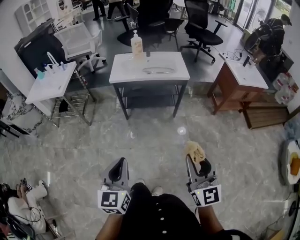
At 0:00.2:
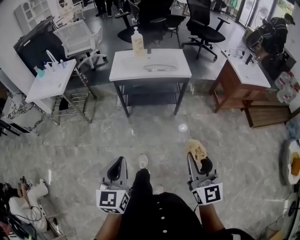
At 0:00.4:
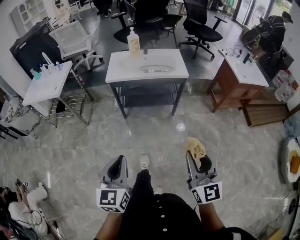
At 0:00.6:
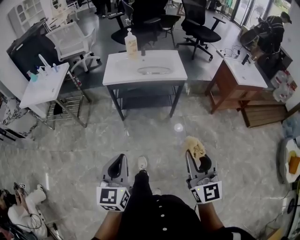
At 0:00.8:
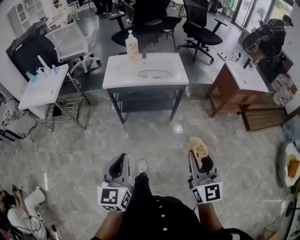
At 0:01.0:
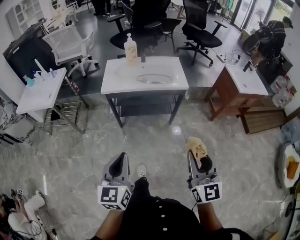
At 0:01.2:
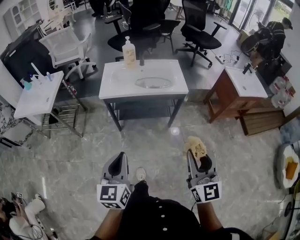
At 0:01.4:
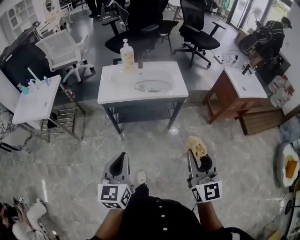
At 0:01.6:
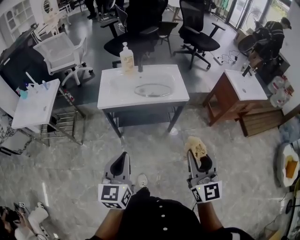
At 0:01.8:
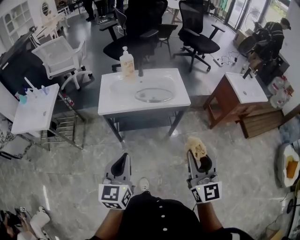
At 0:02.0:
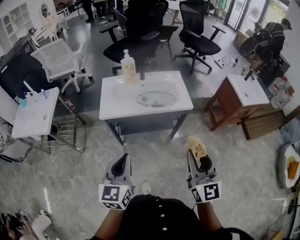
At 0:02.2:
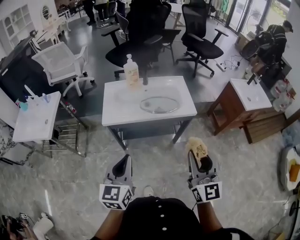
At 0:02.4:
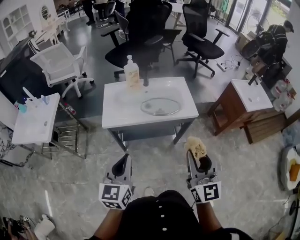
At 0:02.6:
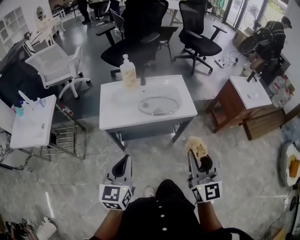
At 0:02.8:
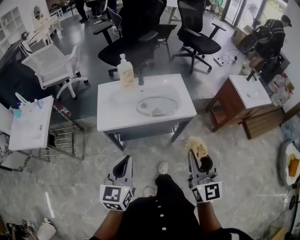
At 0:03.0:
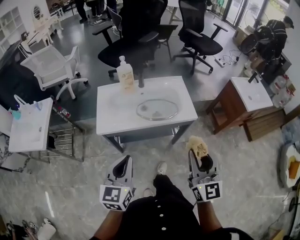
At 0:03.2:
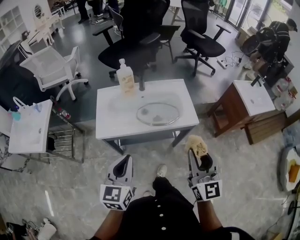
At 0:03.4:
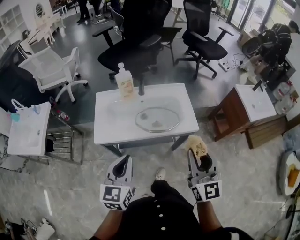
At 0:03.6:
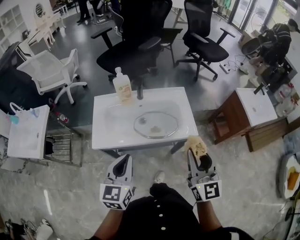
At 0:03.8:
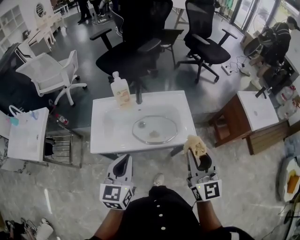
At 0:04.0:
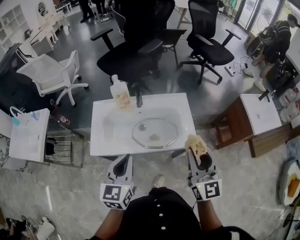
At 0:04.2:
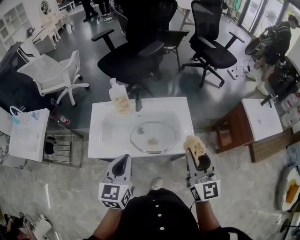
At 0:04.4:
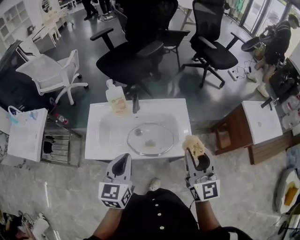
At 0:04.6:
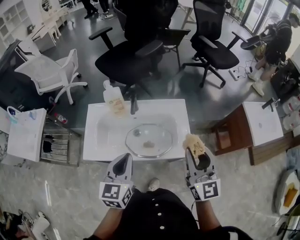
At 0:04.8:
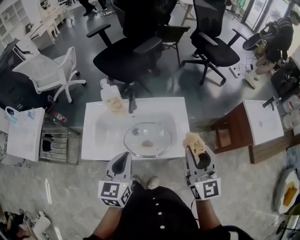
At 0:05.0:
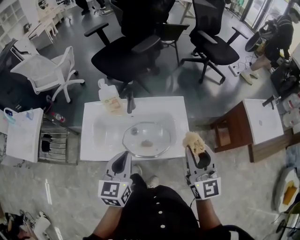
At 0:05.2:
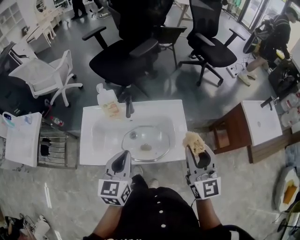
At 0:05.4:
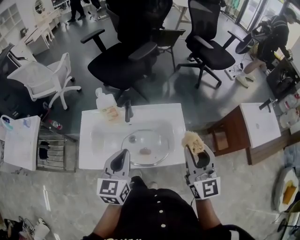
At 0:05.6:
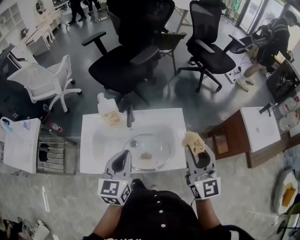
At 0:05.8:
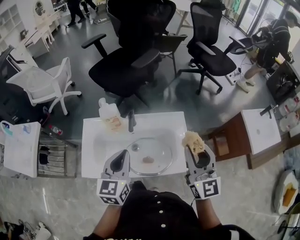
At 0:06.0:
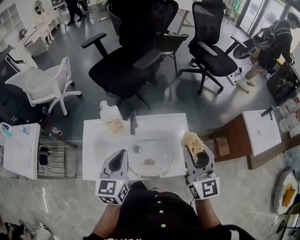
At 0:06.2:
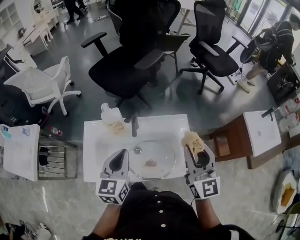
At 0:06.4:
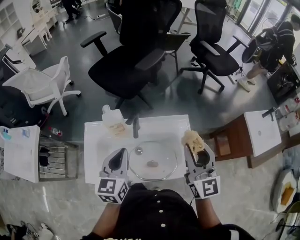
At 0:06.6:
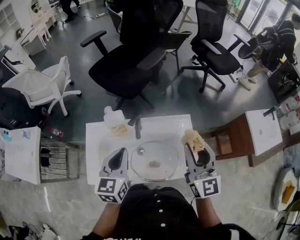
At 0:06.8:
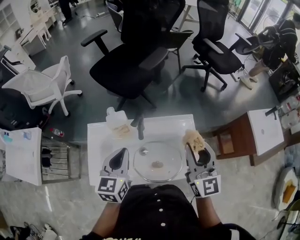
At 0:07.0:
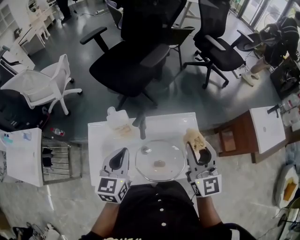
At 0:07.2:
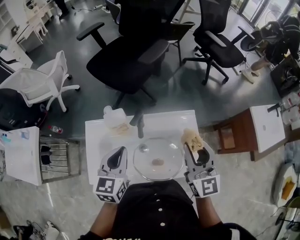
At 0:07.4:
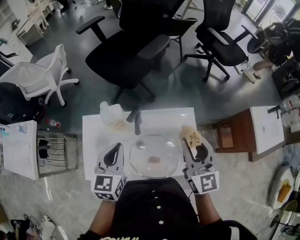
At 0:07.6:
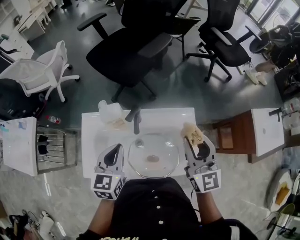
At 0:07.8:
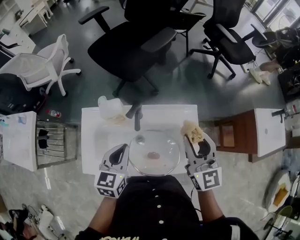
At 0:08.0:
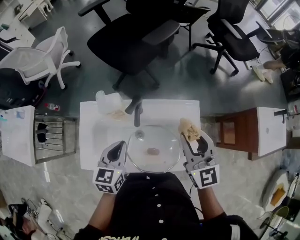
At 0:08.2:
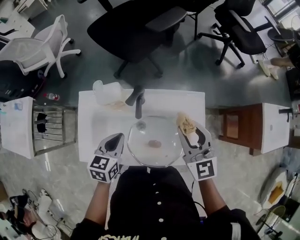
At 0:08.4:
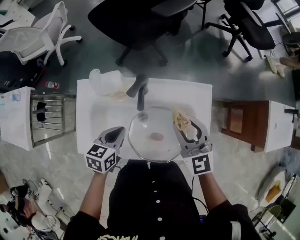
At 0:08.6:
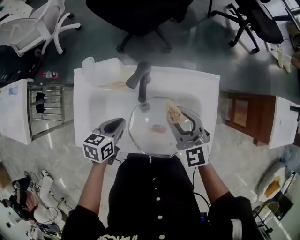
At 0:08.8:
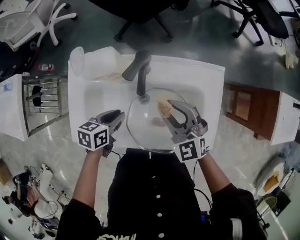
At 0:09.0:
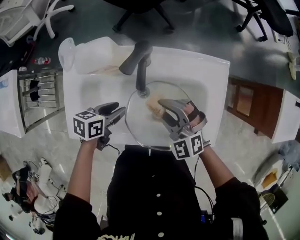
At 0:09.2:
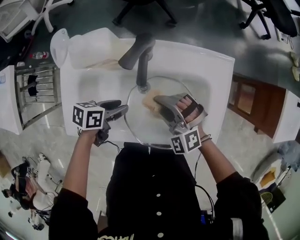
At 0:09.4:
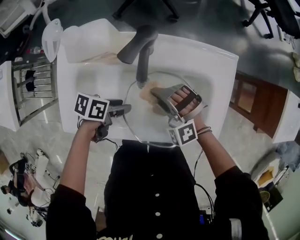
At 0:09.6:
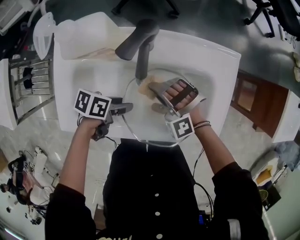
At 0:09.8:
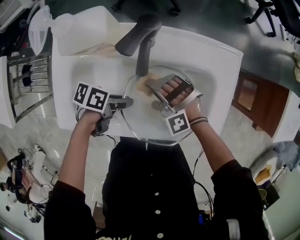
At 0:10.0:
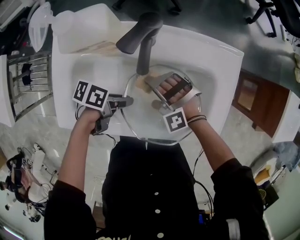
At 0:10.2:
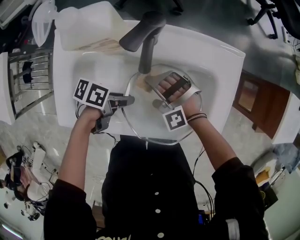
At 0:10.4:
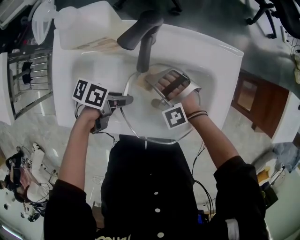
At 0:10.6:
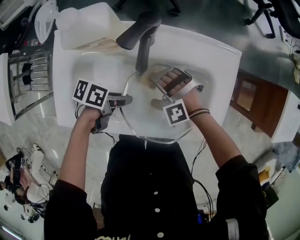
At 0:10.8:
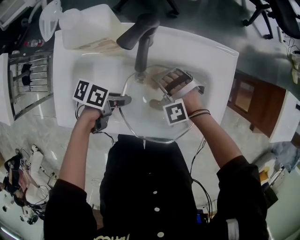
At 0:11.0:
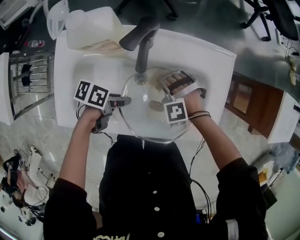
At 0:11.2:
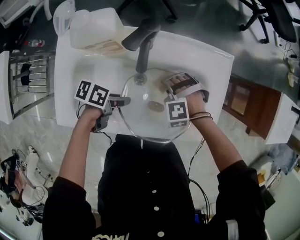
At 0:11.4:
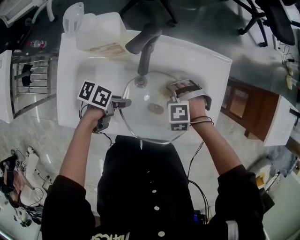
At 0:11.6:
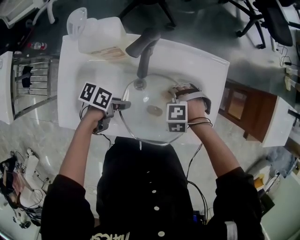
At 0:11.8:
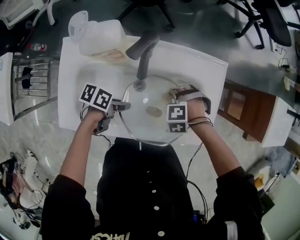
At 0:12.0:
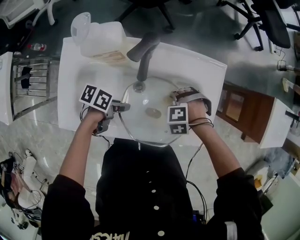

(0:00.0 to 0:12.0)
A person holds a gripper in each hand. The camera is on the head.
0:00.0 - 0:01.6: The grippers both shift forward by some 25 cm.
0:01.6 - 0:03.0: Both grippers travel together forward, about 20 cm.
0:03.0 - 0:04.4: Both grippers travel together forward, approximately 25 cm.
0:04.4 - 0:06.0: The grippers both shift forward by roughly 15 cm.
0:06.0 - 0:07.6: The two grippers go about 10 cm forward.
0:07.6 - 0:09.0: The right gripper heads downward and to the left, covering roughly 30 cm, and angles its fingers downward, by about 30 degrees. Meanwhile the left gripper heads downward, covering some 25 cm, changes its angle by approximately 50 degrees, and opens.
0:09.0 - 0:10.4: The left gripper shifts by some 5 cm, and turns by some 30 degrees; the right gripper travels downward by roughly 15 cm, and rotates around the line of its fingers by approximately 40 degrees, counterclockwise from behind.
0:10.4 - 0:12.0: The right gripper ends up roughly 15 cm from where it was, and angles its fingers downward, by approximately 40 degrees.

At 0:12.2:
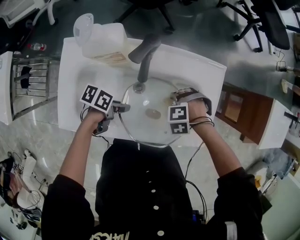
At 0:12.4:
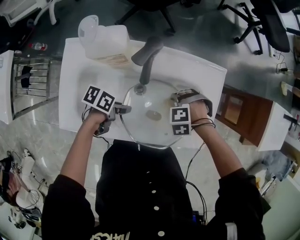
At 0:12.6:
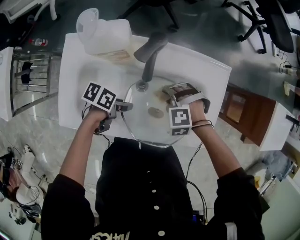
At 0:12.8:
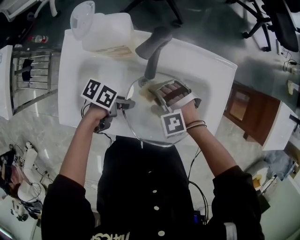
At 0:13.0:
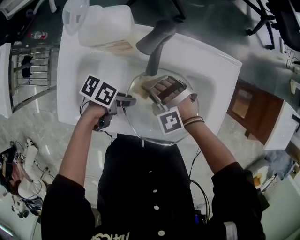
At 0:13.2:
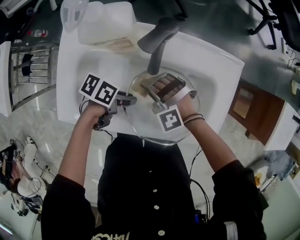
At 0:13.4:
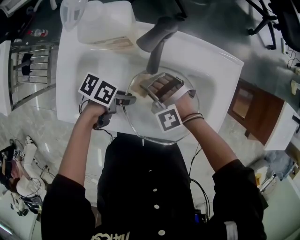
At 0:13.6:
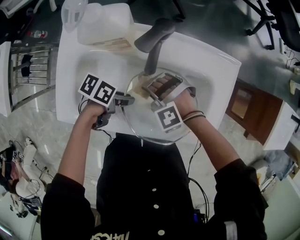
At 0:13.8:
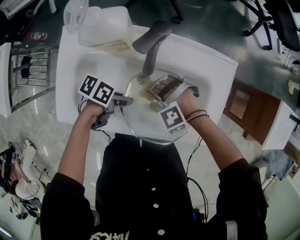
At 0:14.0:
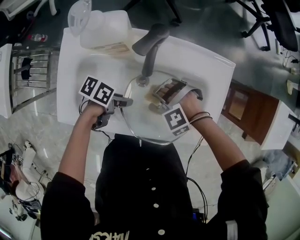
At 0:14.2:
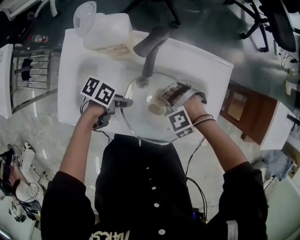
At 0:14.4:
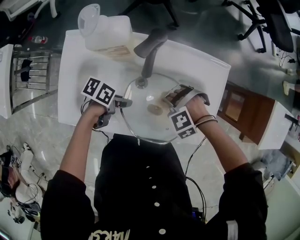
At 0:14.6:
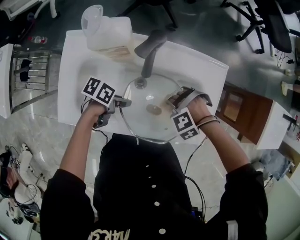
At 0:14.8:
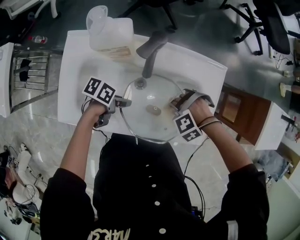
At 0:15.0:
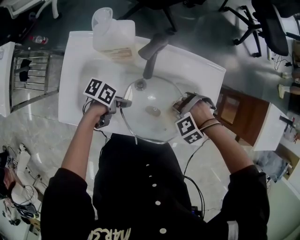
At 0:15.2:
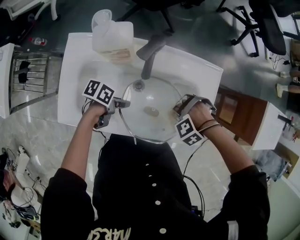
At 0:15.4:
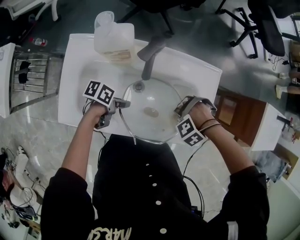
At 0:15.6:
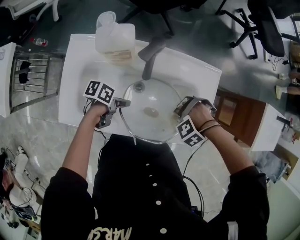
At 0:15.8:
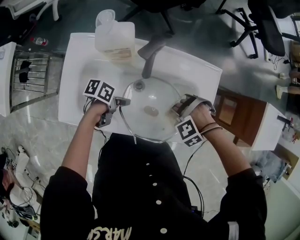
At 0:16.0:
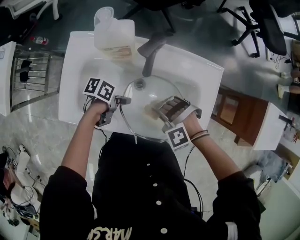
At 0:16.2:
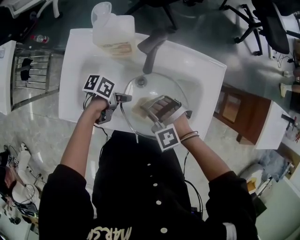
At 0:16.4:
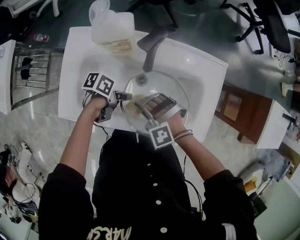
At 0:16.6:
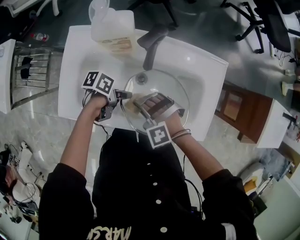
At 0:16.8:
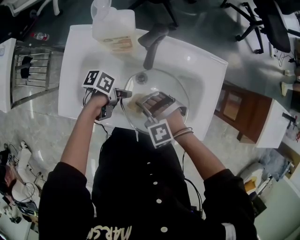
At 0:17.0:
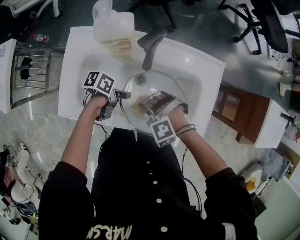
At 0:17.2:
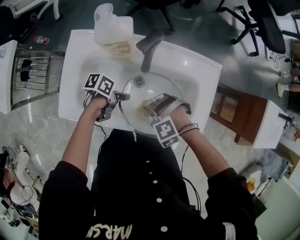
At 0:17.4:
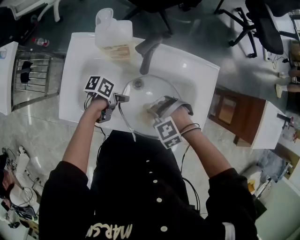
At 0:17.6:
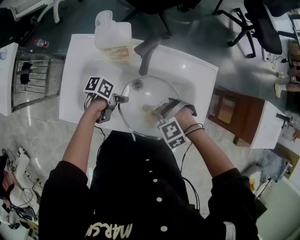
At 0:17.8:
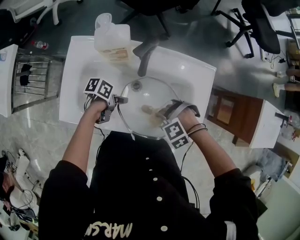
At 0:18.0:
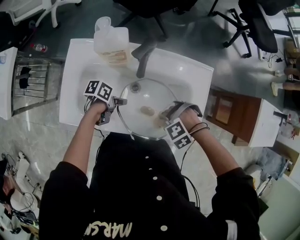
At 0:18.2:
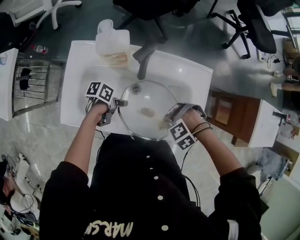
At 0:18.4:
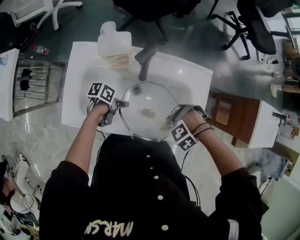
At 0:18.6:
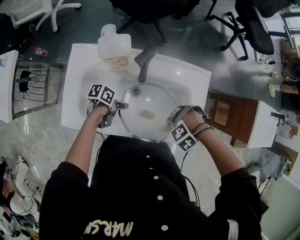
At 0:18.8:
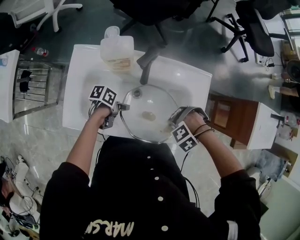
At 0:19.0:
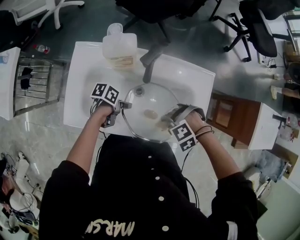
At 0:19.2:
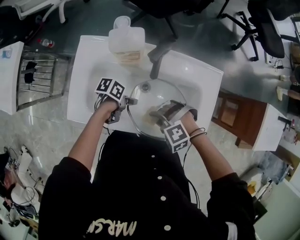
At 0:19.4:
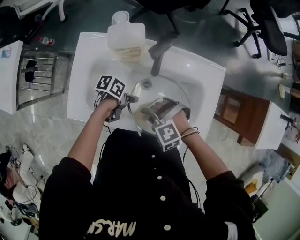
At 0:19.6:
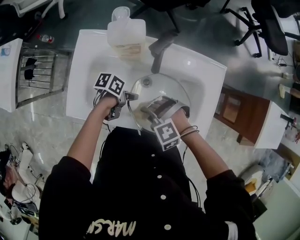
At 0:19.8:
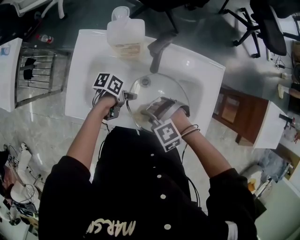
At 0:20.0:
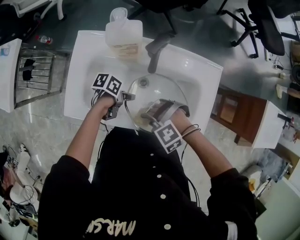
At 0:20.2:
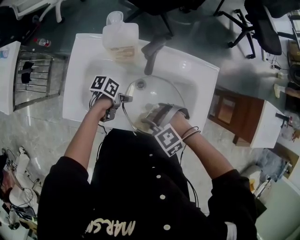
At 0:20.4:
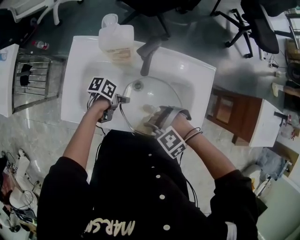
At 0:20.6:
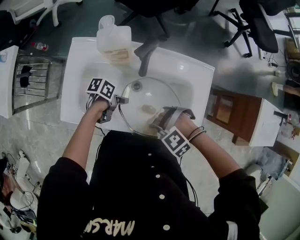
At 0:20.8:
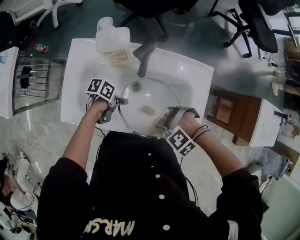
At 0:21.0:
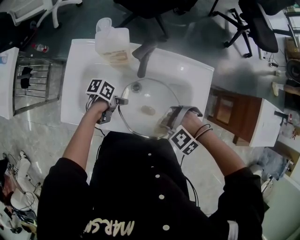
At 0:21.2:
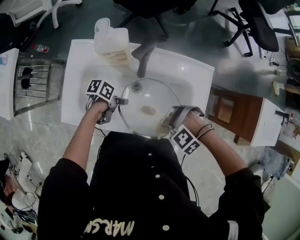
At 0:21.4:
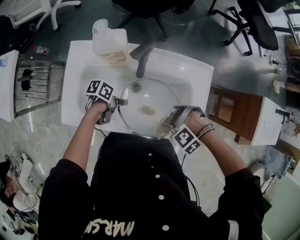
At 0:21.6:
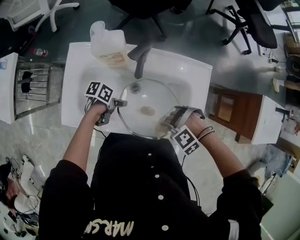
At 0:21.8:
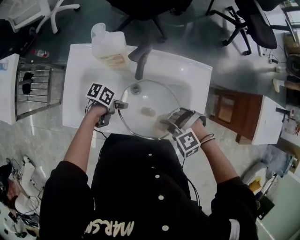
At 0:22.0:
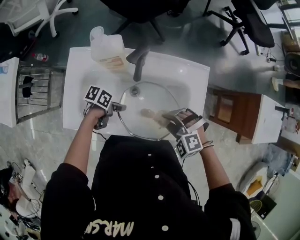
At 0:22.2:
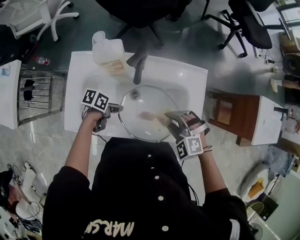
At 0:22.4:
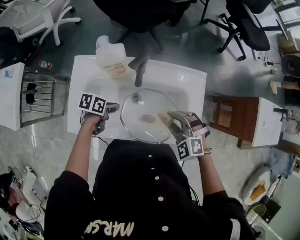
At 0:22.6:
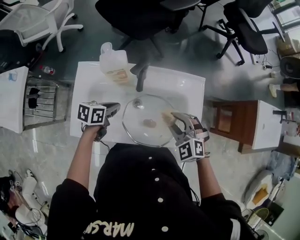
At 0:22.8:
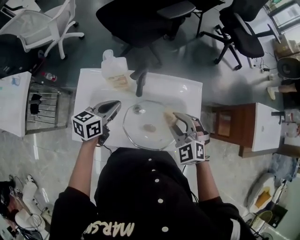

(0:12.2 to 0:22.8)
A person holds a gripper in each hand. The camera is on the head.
0:12.2 - 0:13.8: The right gripper ends up some 10 cm from where it was, and rotates some 40 degrees.
0:13.8 - 0:15.2: The right gripper shifts by about 15 cm, and rotates approximately 30 degrees.
0:15.2 - 0:16.8: The right gripper ends up roughly 20 cm from where it was, and changes its angle by approximately 50 degrees.
0:16.8 - 0:18.2: The right gripper ends up some 15 cm from where it was, and swivels about 40 degrees.
0:18.2 - 0:19.8: The right gripper shifts by approximately 15 cm, and rotates some 30 degrees.
0:19.8 - 0:21.2: The right gripper moves about 15 cm, and rotates approximately 20 degrees.
0:21.2 - 0:22.8: Both grippers move upward, some 20 cm. The left gripper turns by approximately 60 degrees. The right gripper tilts its fingers approximately 40 degrees upward.

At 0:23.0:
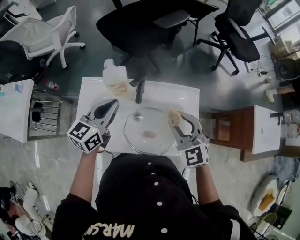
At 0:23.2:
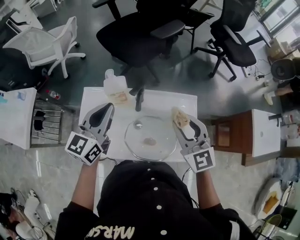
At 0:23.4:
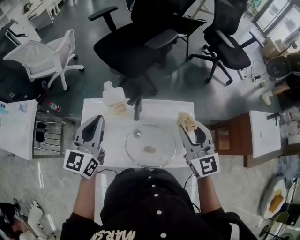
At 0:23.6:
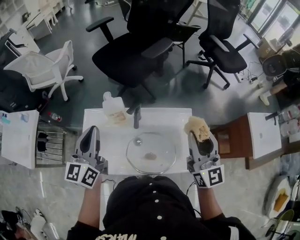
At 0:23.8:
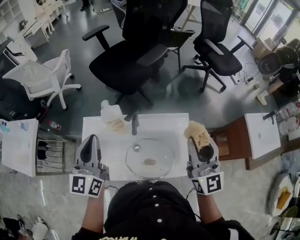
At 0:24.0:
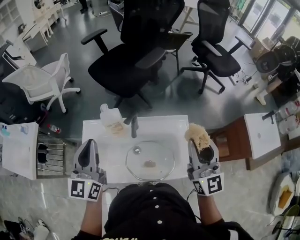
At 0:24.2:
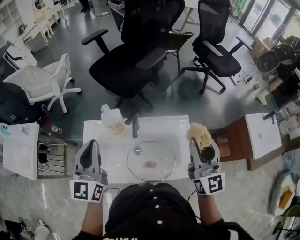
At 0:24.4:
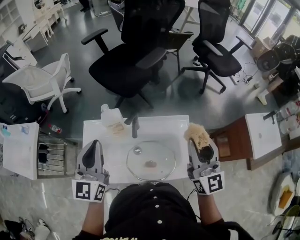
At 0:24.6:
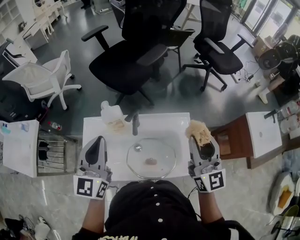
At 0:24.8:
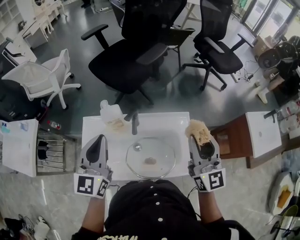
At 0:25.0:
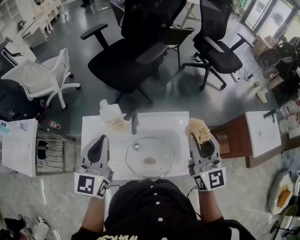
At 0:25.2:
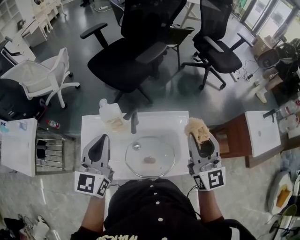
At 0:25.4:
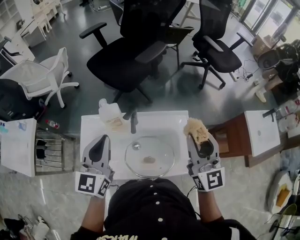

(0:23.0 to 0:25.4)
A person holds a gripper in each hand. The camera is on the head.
0:23.0 - 0:24.2: The left gripper shifts about 15 cm upward, and changes its angle by some 30 degrees. Meanwhile the right gripper shifts roughly 20 cm upward and to the right, and points its fingers about 30 degrees further upward.
0:24.2 - 0:25.4: The left gripper moves about 5 cm.
